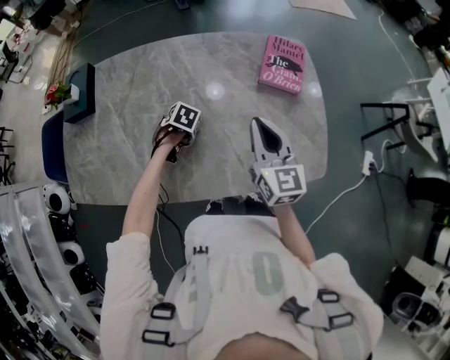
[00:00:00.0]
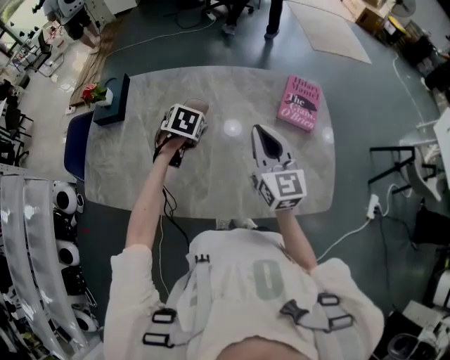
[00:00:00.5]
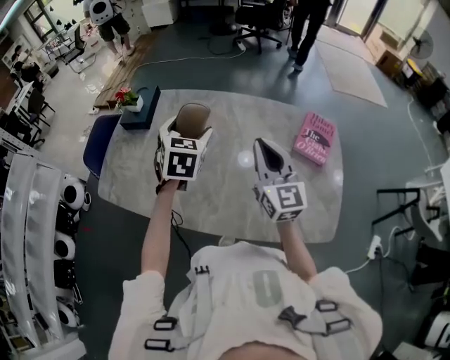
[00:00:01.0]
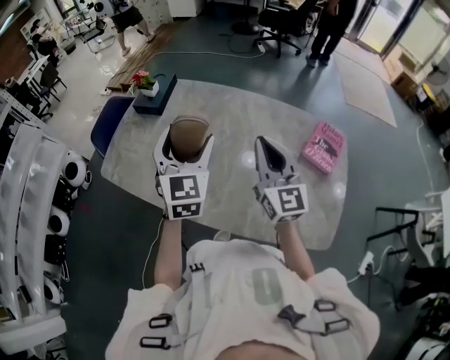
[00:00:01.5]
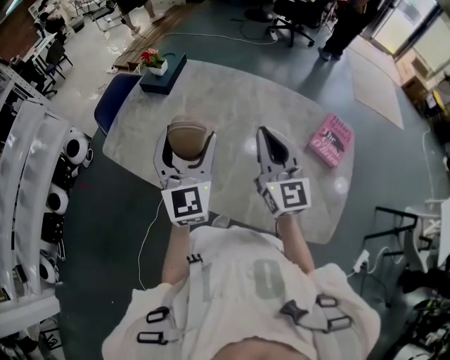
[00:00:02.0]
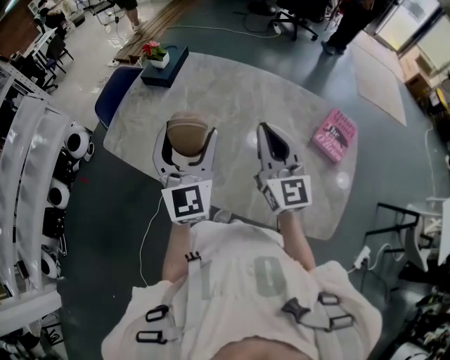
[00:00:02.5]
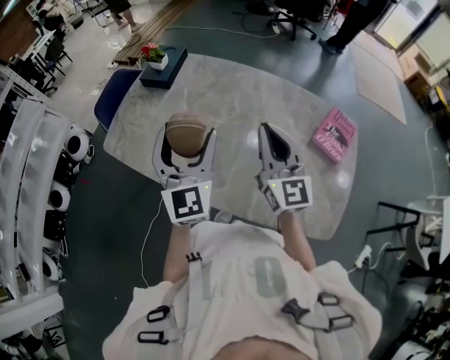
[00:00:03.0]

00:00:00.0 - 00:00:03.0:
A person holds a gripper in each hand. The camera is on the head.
00:00:00.0 - 00:00:01.5: The right gripper changes place by approximately 15 cm, and changes its angle by about 30 degrees. The left gripper is displaced upward by some 35 cm, and tilts its fingers roughly 70 degrees upward.
00:00:01.5 - 00:00:03.0: The left gripper changes place by roughly 5 cm.

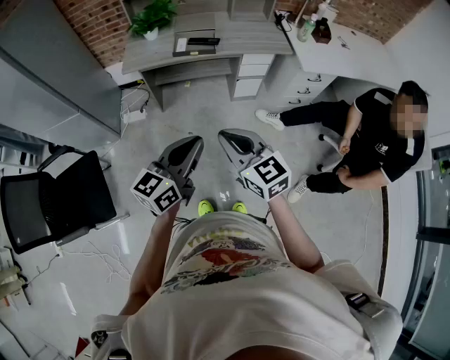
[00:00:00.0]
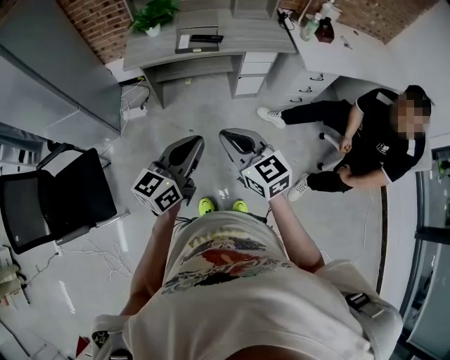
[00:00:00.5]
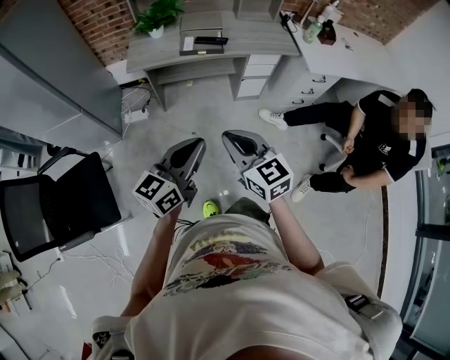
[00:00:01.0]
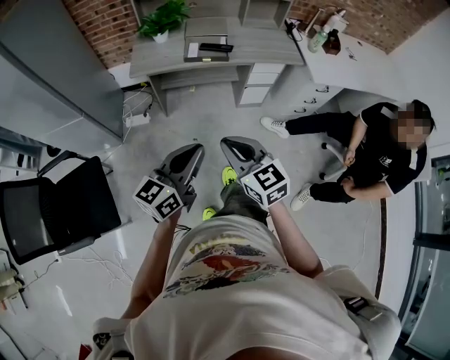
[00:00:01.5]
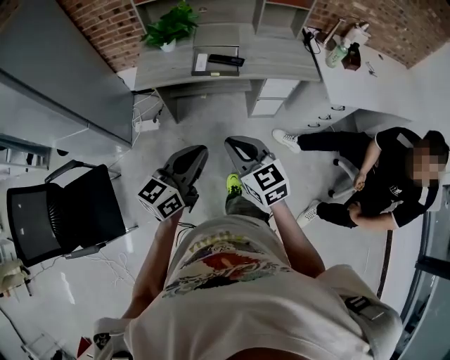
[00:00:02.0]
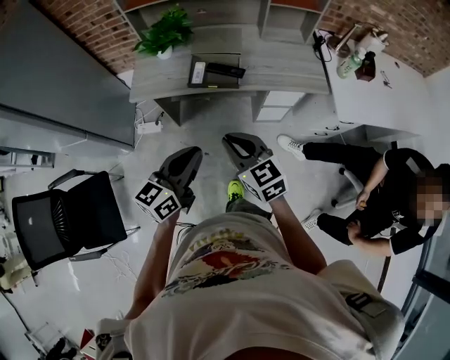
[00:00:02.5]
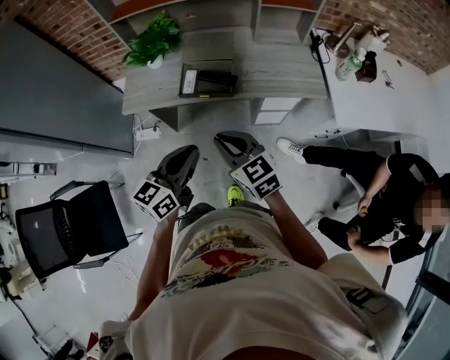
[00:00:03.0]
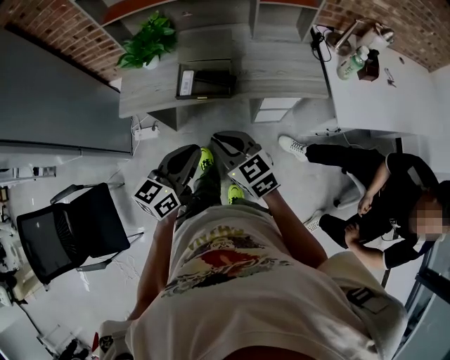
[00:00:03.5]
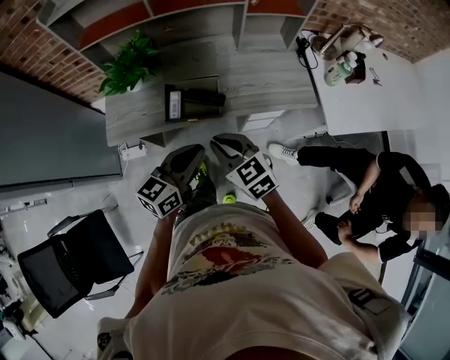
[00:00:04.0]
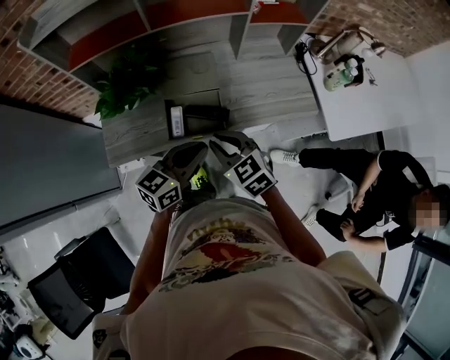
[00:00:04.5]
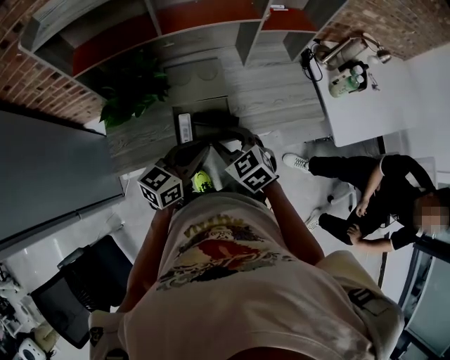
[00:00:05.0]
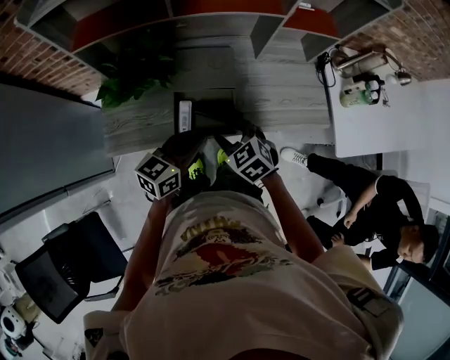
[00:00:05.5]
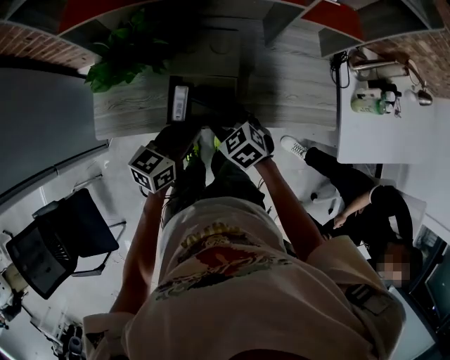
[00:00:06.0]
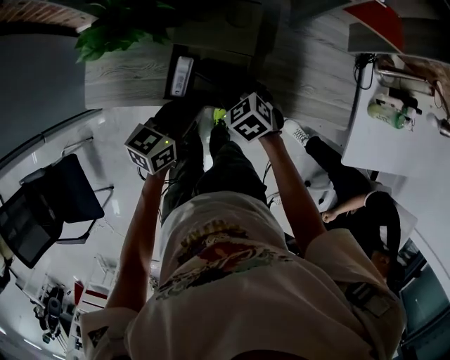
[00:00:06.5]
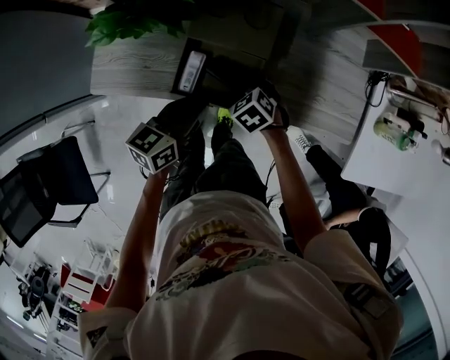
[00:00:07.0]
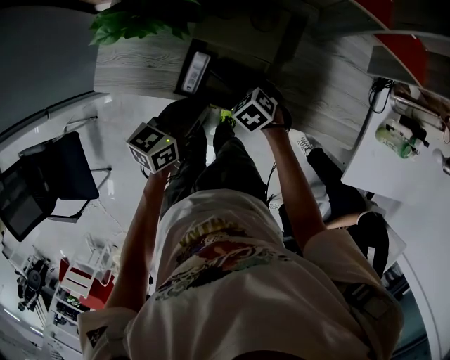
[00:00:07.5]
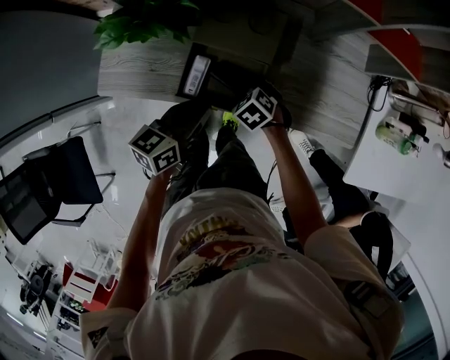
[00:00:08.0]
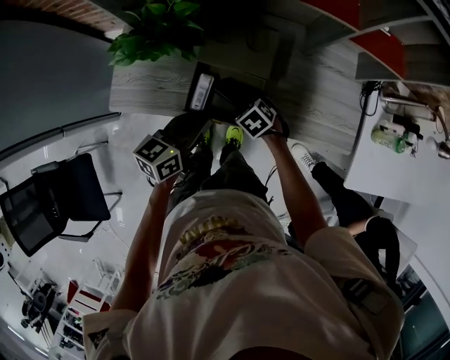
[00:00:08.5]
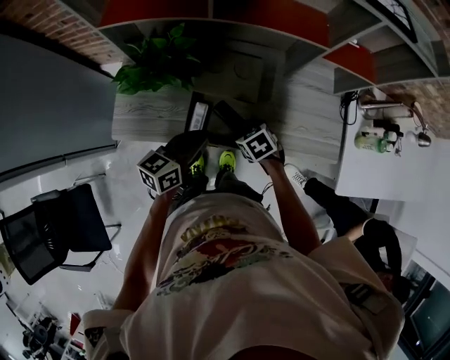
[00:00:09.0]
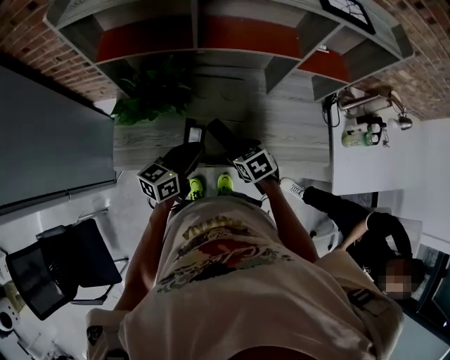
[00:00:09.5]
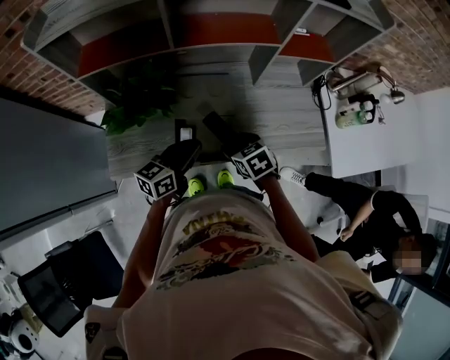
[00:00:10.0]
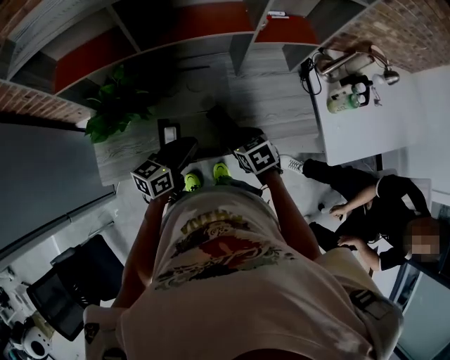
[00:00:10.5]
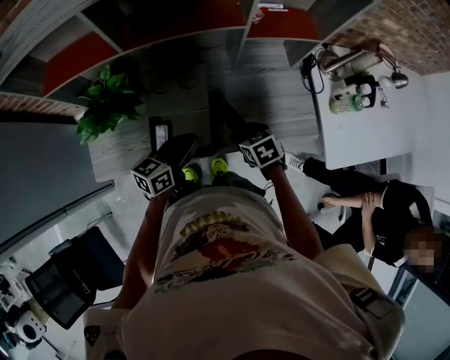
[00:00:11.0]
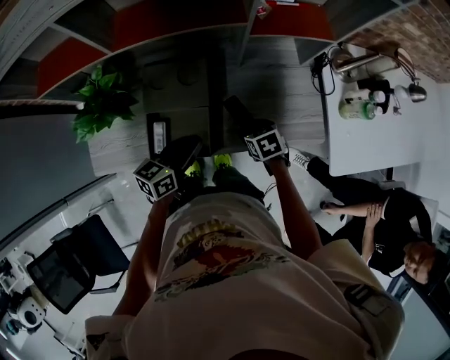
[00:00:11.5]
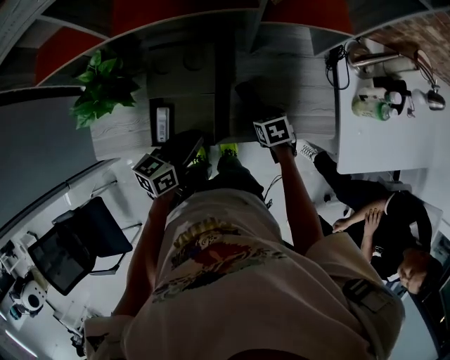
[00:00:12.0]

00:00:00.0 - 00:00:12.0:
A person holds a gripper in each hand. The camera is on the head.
00:00:00.0 - 00:00:02.0: Both grippers move forward, roughly 15 cm.
00:00:02.0 - 00:00:04.0: Both grippers travel together forward, approximately 30 cm.
00:00:04.0 - 00:00:06.0: The grippers both shift forward and downward by about 20 cm. The right gripper swivels about 30 degrees, and opens.
00:00:06.0 - 00:00:08.0: The right gripper shifts approximately 15 cm downward, and changes its angle by approximately 20 degrees.
00:00:08.0 - 00:00:10.0: The left gripper heads upward, covering about 5 cm, while the right gripper heads upward, covering about 15 cm, and turns by roughly 40 degrees.
00:00:10.0 - 00:00:12.0: The right gripper shifts roughly 20 cm to the right and downward. The left gripper travels to the right and downward by some 10 cm.

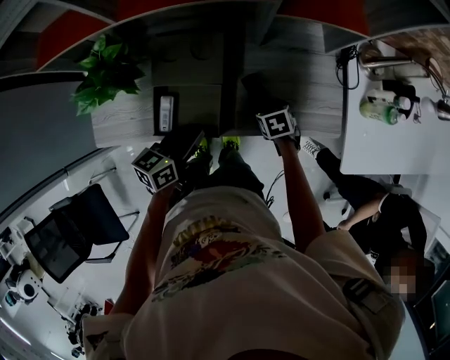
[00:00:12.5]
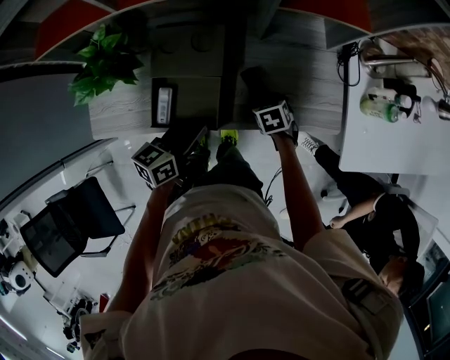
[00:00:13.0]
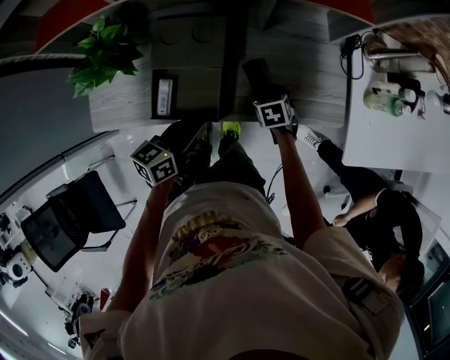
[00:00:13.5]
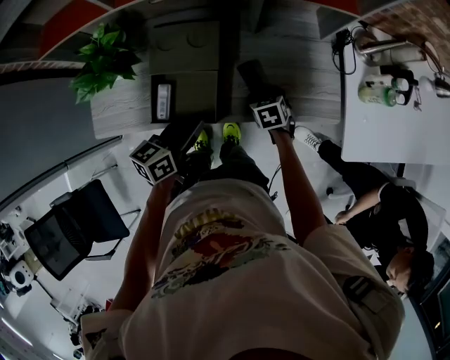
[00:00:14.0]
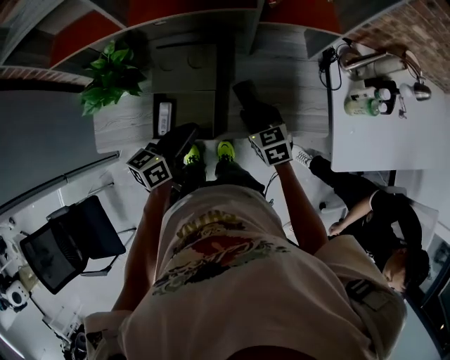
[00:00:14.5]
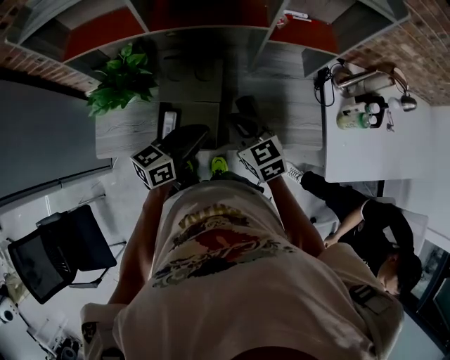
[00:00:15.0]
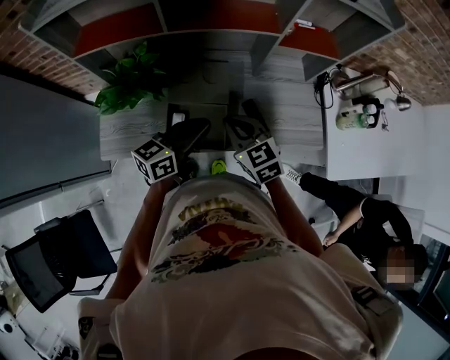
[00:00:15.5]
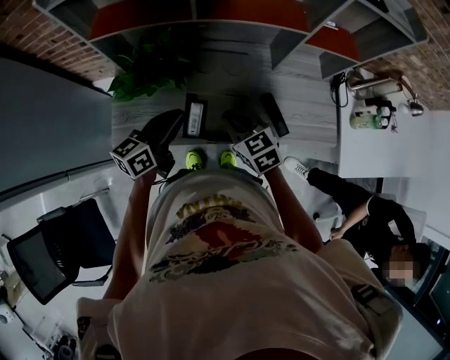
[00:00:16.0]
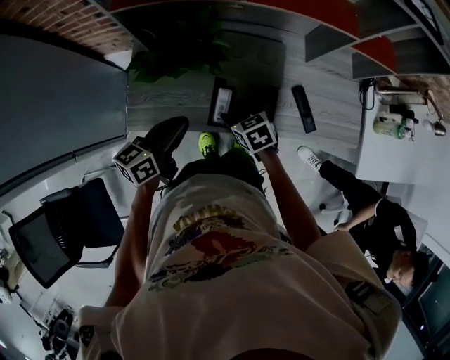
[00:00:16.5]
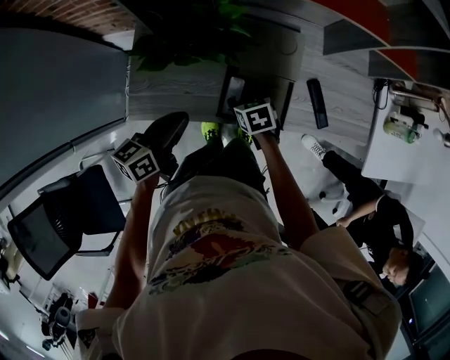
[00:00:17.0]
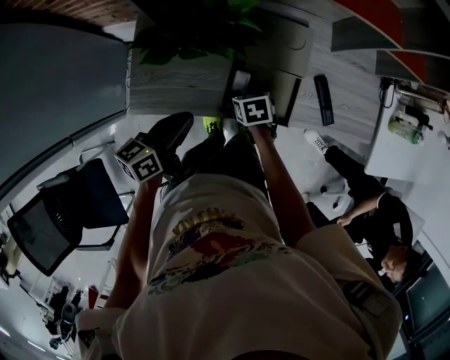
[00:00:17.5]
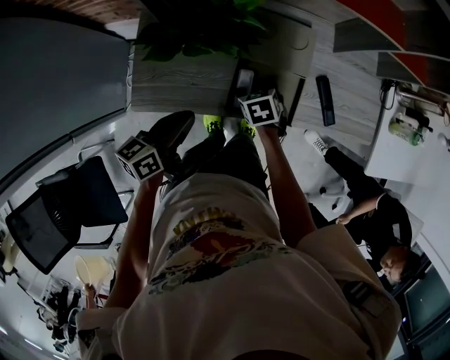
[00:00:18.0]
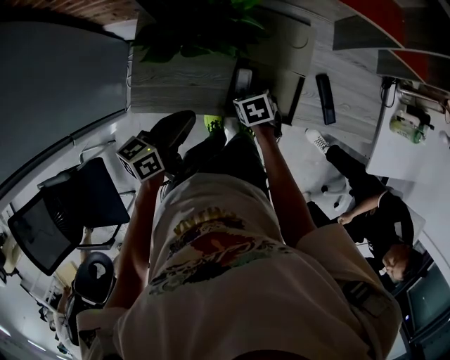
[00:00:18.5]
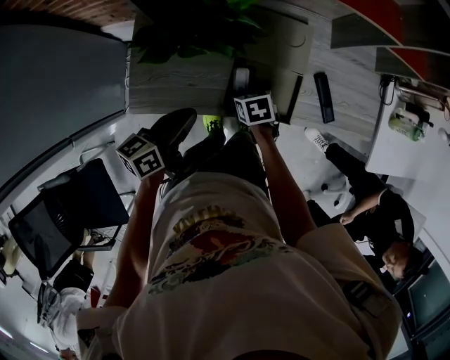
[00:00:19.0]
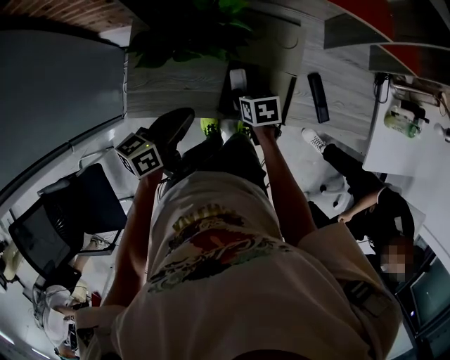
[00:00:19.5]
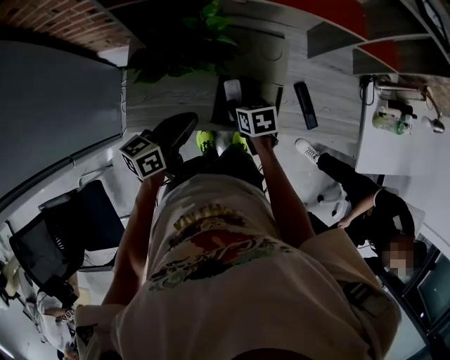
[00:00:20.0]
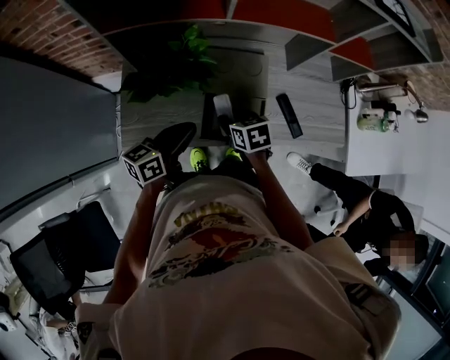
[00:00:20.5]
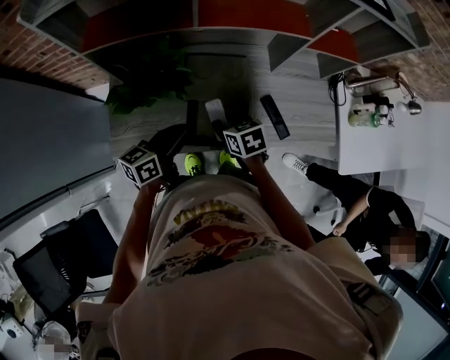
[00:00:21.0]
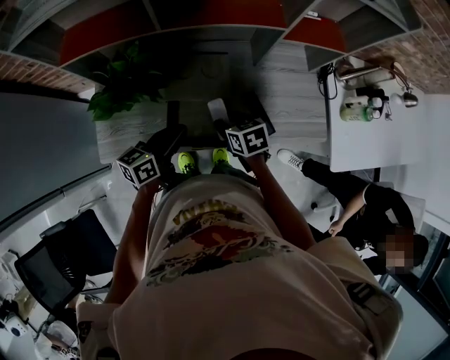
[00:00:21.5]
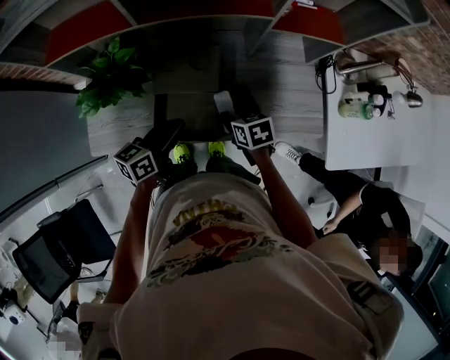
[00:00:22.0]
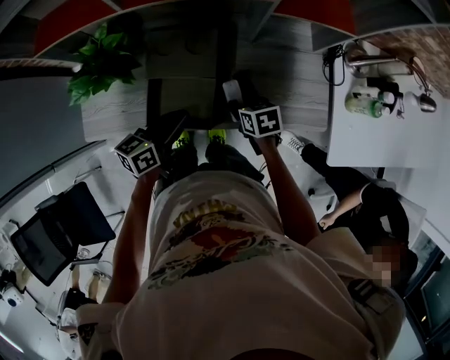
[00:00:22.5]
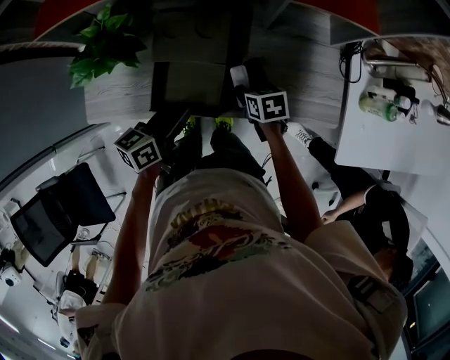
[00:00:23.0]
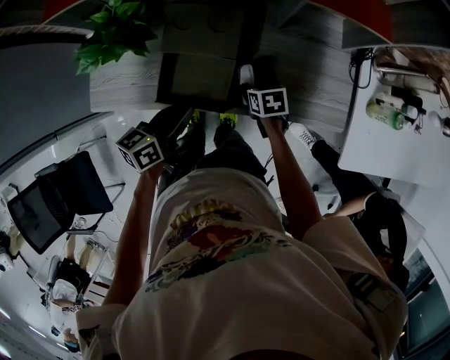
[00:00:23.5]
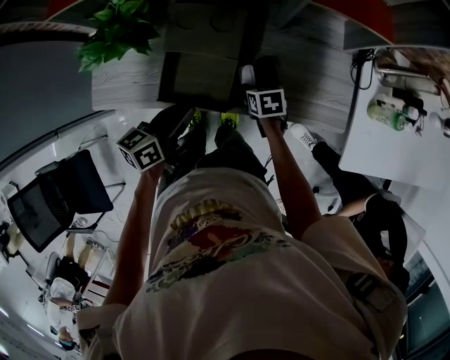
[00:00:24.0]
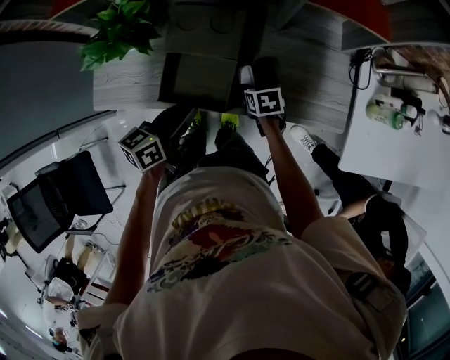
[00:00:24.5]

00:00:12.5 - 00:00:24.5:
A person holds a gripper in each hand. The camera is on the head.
00:00:12.5 - 00:00:14.5: The right gripper travels upward by about 15 cm, and rotates some 30 degrees.
00:00:14.5 - 00:00:16.5: Both grippers move to the left, some 25 cm. The right gripper closes and opens again.
00:00:16.5 - 00:00:18.5: The right gripper goes some 10 cm downward, while the left gripper changes place by roughly 5 cm.
00:00:18.5 - 00:00:20.5: The left gripper moves to the right and upward, some 10 cm, while the right gripper goes approximately 10 cm upward, and closes its fingers.
00:00:20.5 - 00:00:22.5: Both grippers move to the right, roughly 20 cm.
00:00:22.5 - 00:00:24.5: The right gripper shifts about 5 cm downward.
